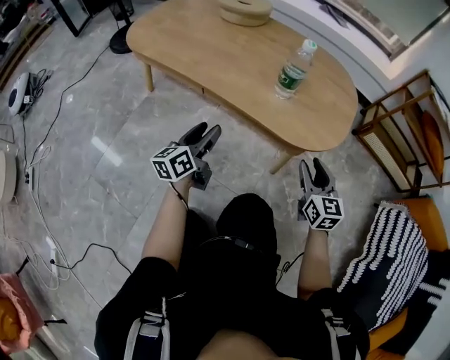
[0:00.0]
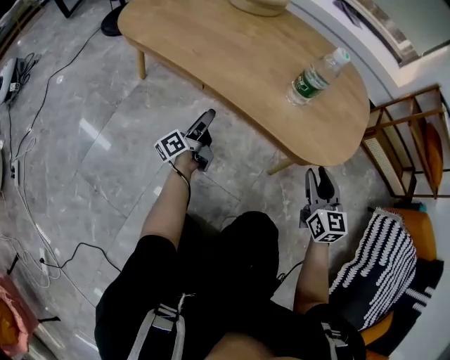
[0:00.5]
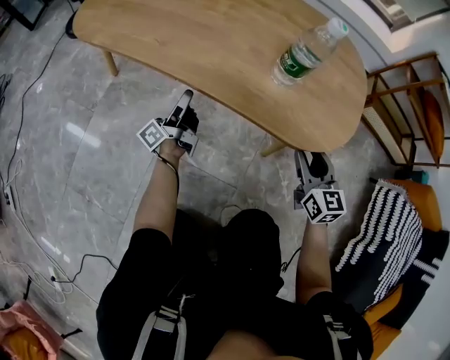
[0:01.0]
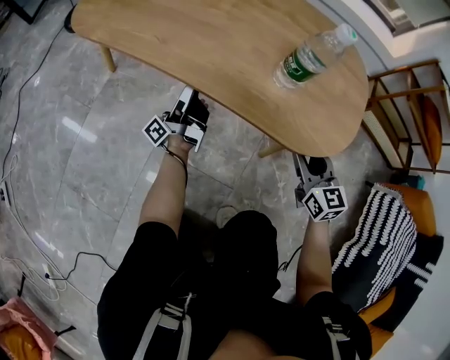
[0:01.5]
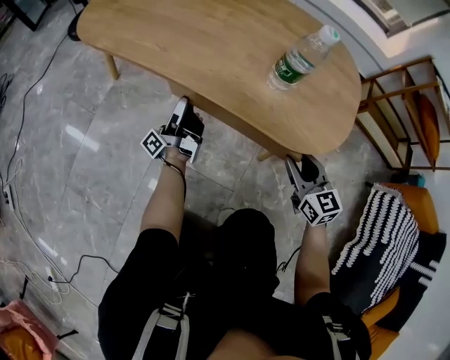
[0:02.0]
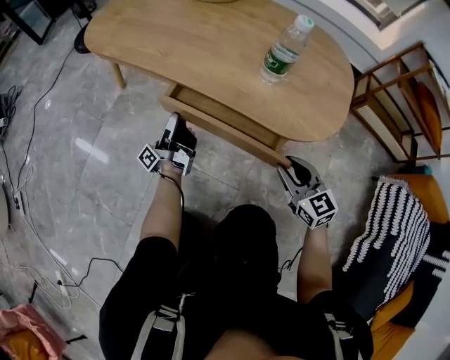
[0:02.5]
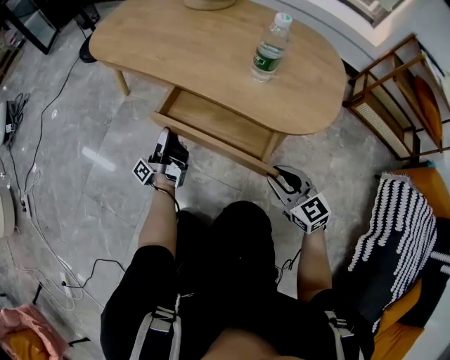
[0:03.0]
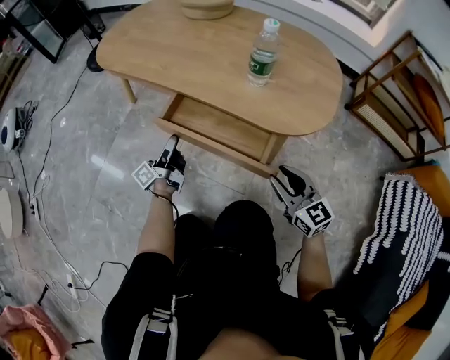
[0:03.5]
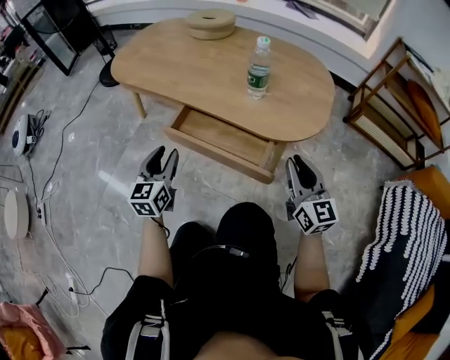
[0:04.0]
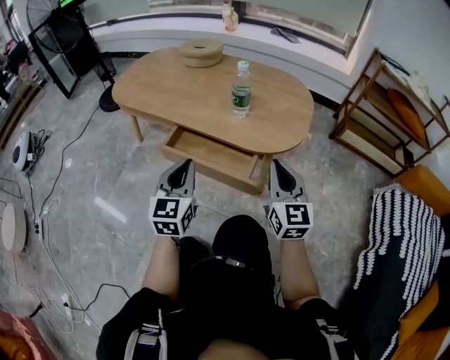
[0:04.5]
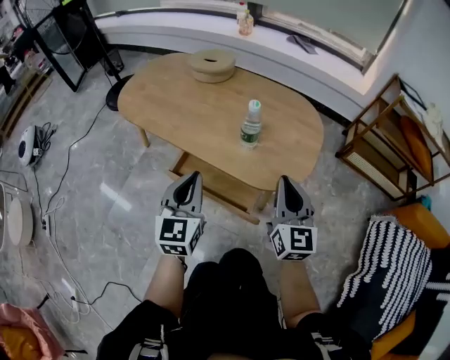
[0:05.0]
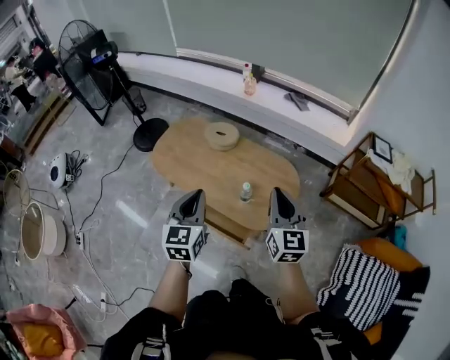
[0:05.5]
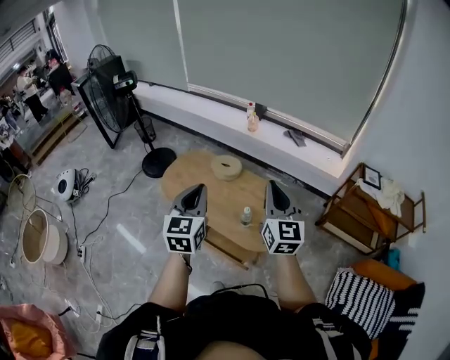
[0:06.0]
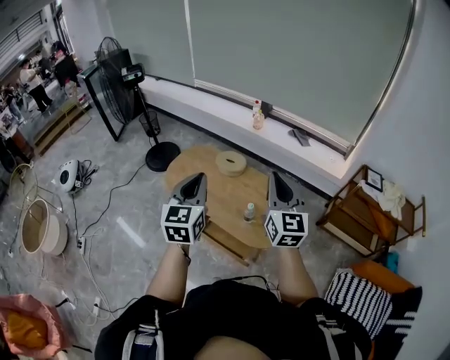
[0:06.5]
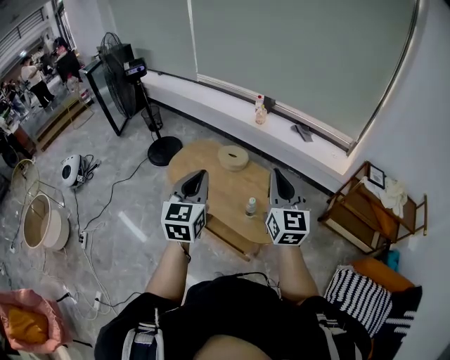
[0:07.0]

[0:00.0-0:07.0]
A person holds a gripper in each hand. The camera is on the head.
0:00.0 to 0:02.0: The right gripper moves downward and forward, about 10 cm. The left gripper shifts approximately 20 cm forward and downward, and twists approximately 50 degrees counterclockwise, seen from behind.
0:02.0 to 0:03.5: Both grippers travel together backward, some 10 cm. The left gripper changes its angle by some 30 degrees.
0:03.5 to 0:05.0: The left gripper heads upward and to the right, covering roughly 35 cm, rolls clockwise, seen from behind, by approximately 80 degrees, and closes up. Meanwhile the right gripper moves upward, roughly 25 cm, rotates roughly 30 degrees, and closes.
0:05.0 to 0:07.0: Both grippers move upward, some 60 cm.

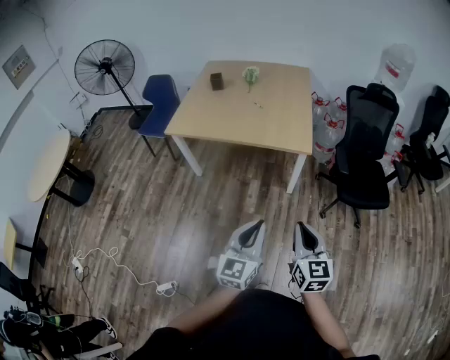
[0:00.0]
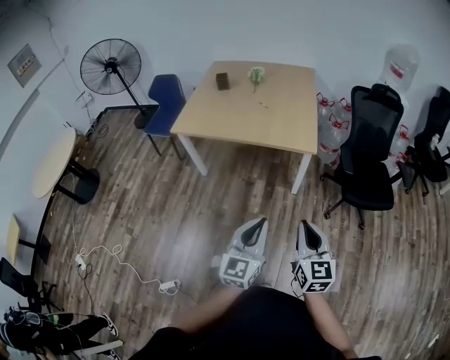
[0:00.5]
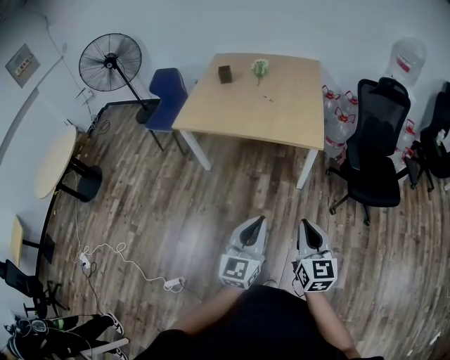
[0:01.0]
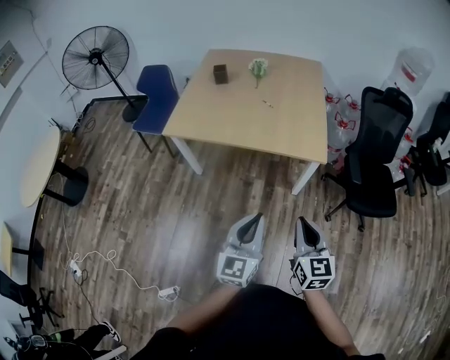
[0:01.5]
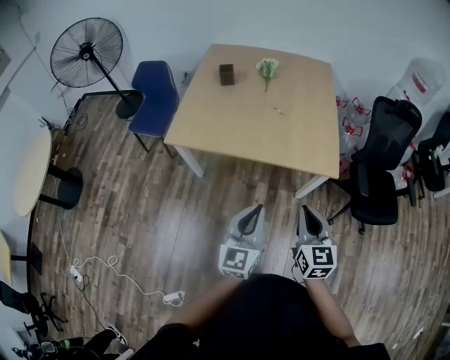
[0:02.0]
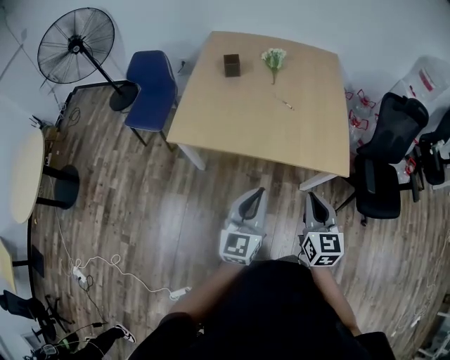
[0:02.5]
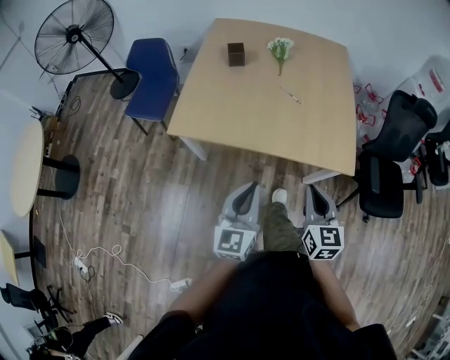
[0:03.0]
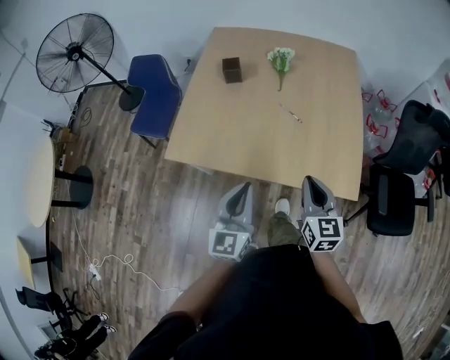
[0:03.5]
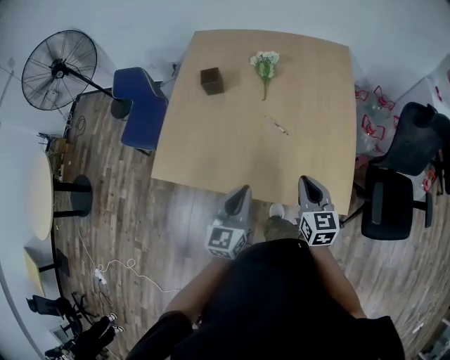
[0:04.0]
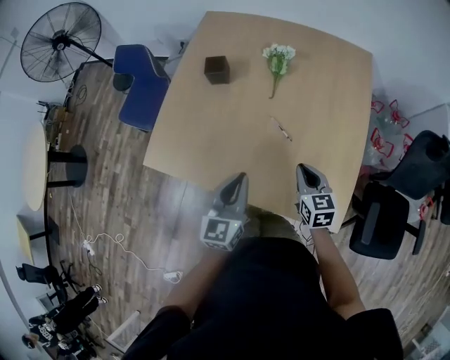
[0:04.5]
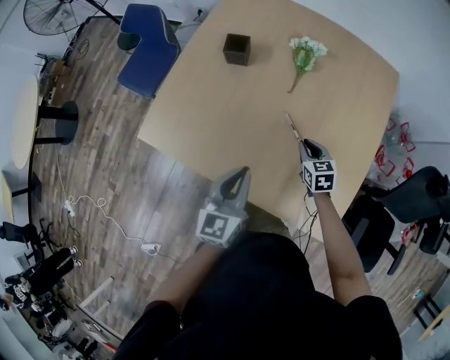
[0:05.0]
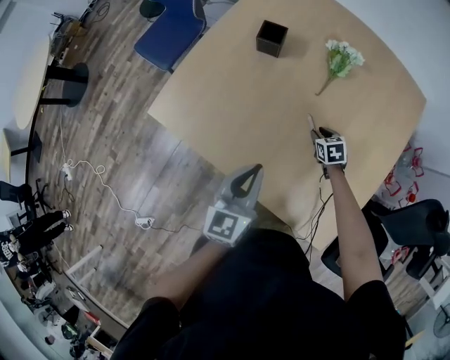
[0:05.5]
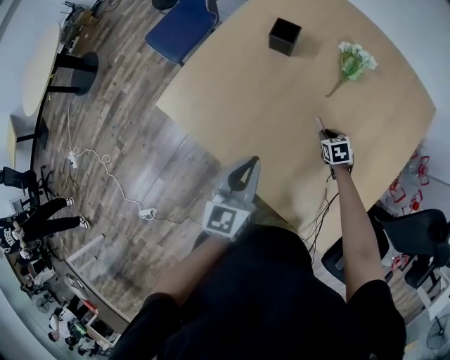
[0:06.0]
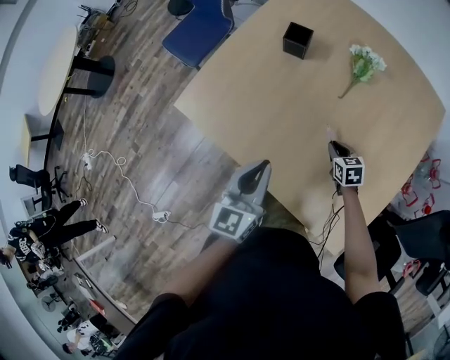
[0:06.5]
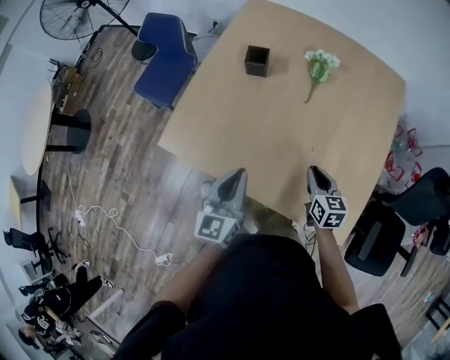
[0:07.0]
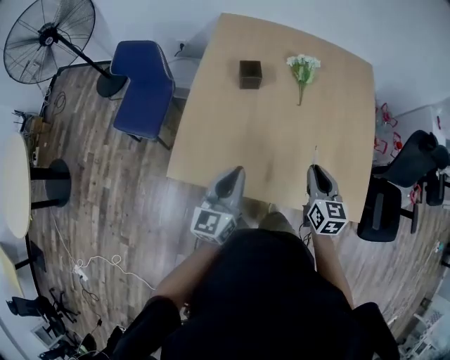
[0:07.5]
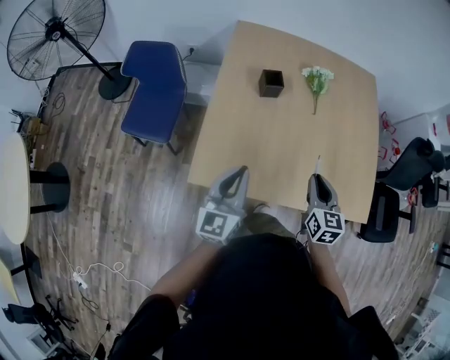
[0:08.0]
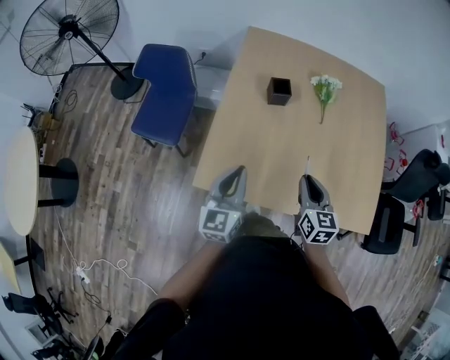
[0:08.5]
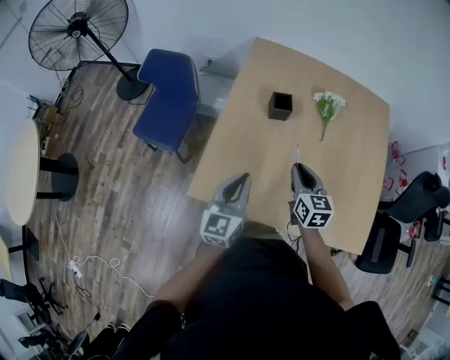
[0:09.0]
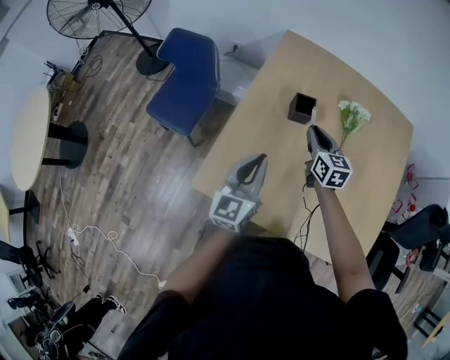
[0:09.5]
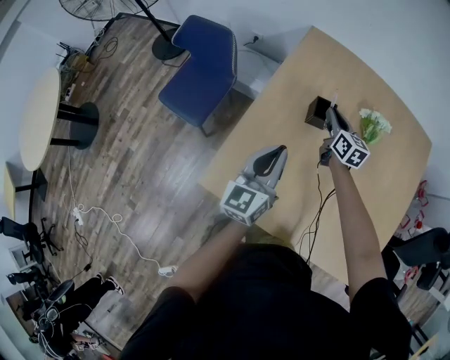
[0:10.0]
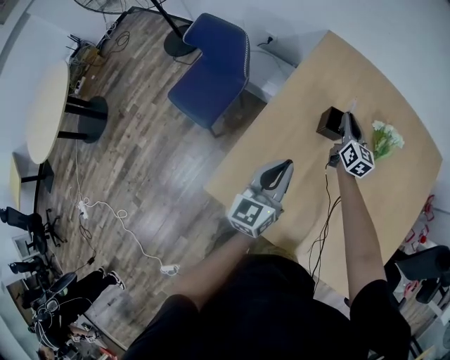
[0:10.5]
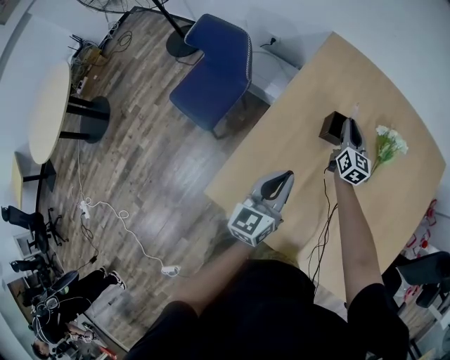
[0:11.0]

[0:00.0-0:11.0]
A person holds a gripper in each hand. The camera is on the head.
0:00.0 to 0:02.0: The two grippers go roughly 40 cm forward and to the left.
0:02.0 to 0:03.5: The grippers both shift forward by roughly 30 cm.
0:03.5 to 0:05.5: The right gripper shifts by roughly 60 cm, angles its fingers downward, by some 40 degrees, and opens up. The left gripper shifts by roughly 30 cm, and rotates some 20 degrees.
0:05.5 to 0:07.5: The left gripper moves about 25 cm, and changes its angle by about 20 degrees, while the right gripper goes roughly 30 cm upward, and tips its fingers upward by some 30 degrees.
0:07.5 to 0:09.0: The left gripper is displaced to the left and forward by roughly 10 cm. Meanwhile the right gripper shifts some 20 cm to the left and forward.
0:09.0 to 0:11.0: The right gripper shifts approximately 35 cm forward. Meanwhile the left gripper heads forward and downward, covering approximately 20 cm.

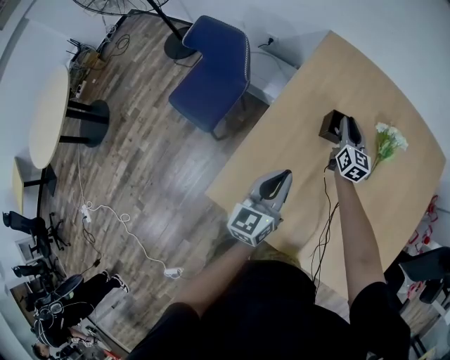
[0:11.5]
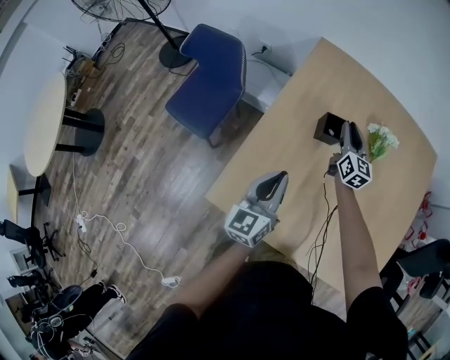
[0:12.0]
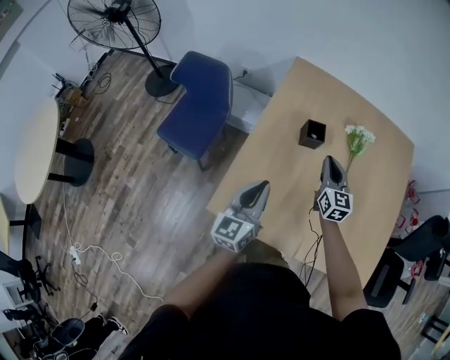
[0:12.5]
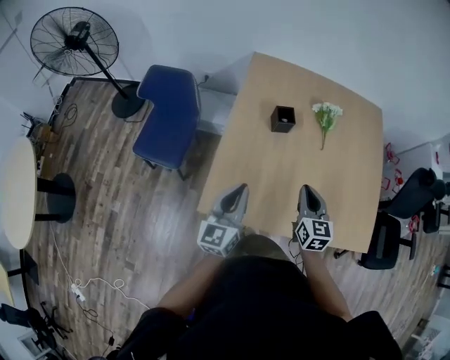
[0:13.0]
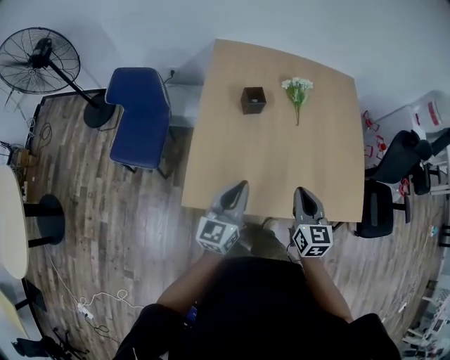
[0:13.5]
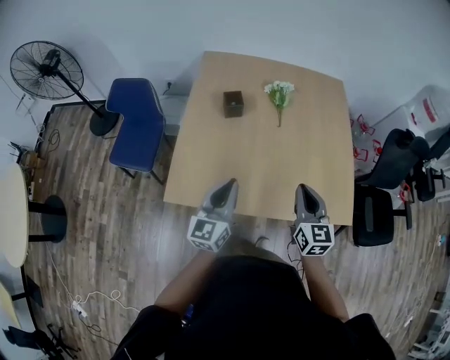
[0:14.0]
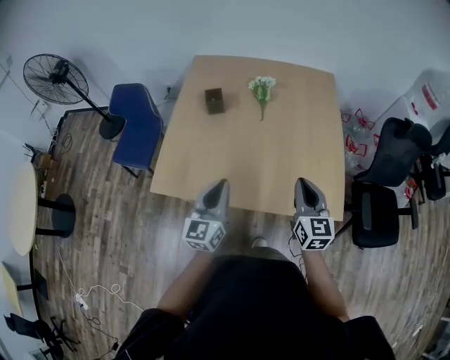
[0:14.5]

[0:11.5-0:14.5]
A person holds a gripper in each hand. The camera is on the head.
0:11.5 to 0:13.0: The left gripper goes roughly 20 cm backward, upward and to the left. The right gripper travels backward by some 40 cm.
0:13.0 to 0:14.5: Both grippers travel together to the right, about 35 cm.

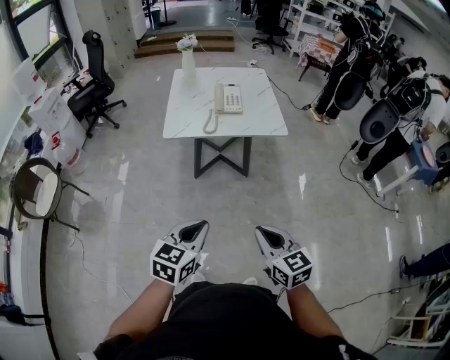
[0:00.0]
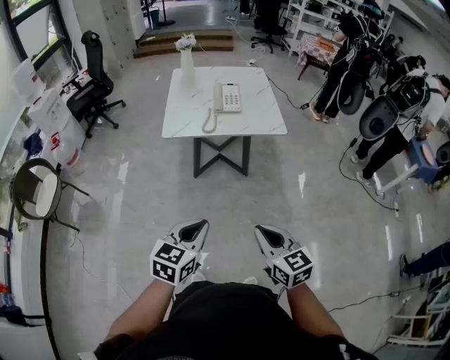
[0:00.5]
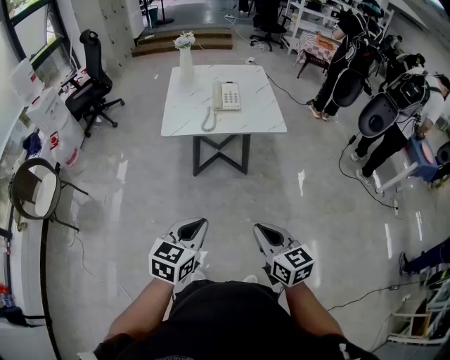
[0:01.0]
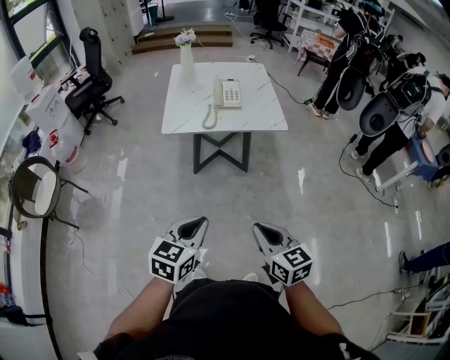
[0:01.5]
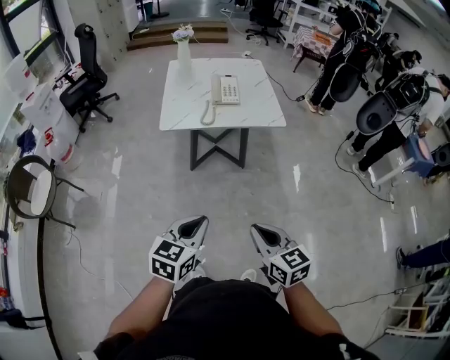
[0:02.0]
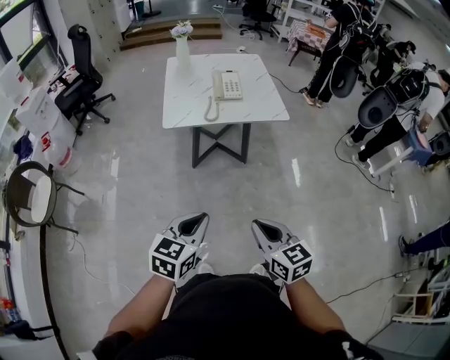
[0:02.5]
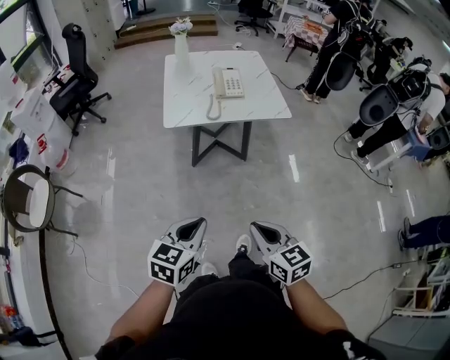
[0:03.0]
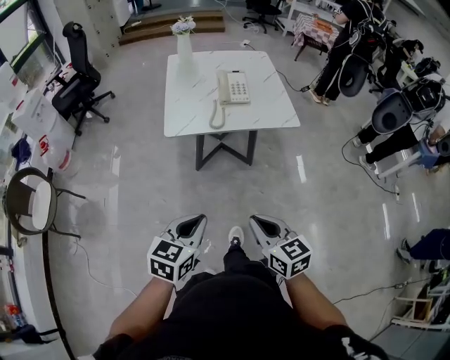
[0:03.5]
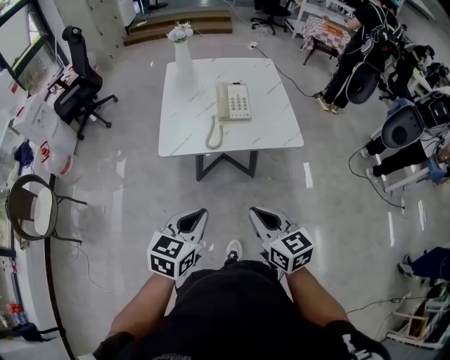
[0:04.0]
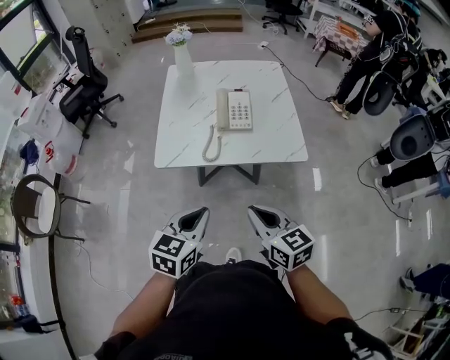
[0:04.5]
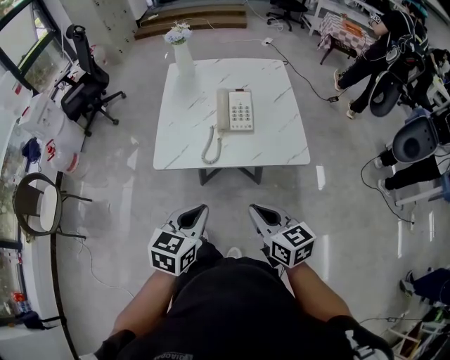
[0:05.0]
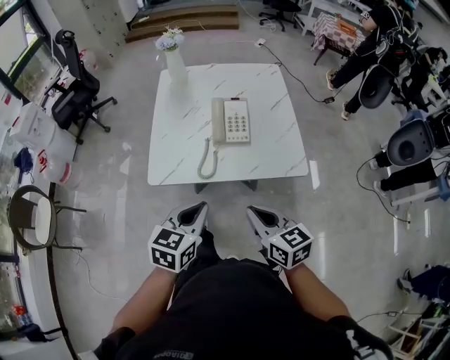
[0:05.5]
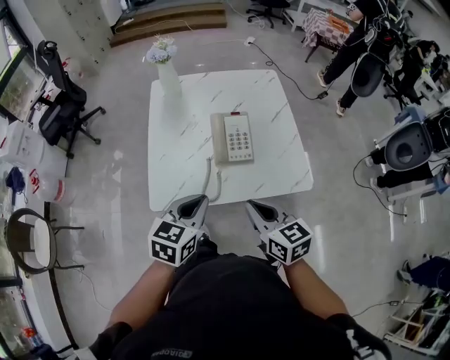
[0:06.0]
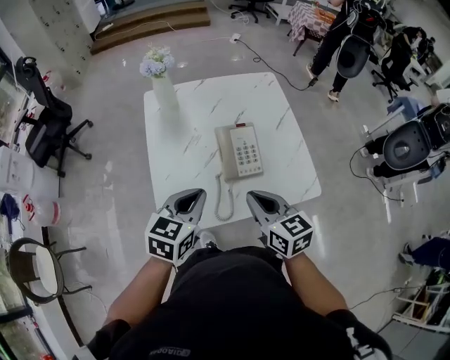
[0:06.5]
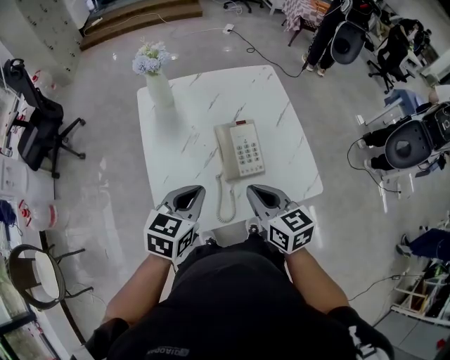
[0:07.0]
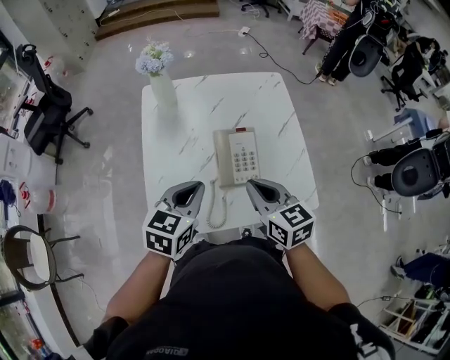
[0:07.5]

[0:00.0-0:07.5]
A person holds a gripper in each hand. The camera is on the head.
0:00.0 to 0:02.0: There are only small adjustments of the grippers.
0:02.0 to 0:04.0: Both grippers move forward, some 25 cm.
0:04.0 to 0:05.5: The grippers both shift forward by some 15 cm.
0:05.5 to 0:07.5: Both grippers travel together forward, roughly 30 cm.
